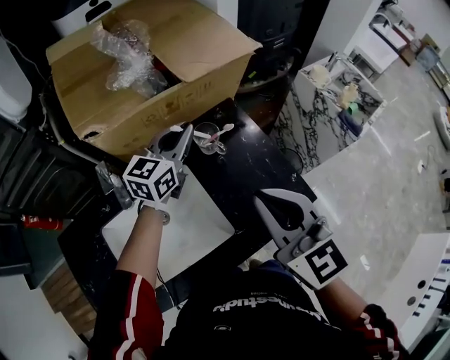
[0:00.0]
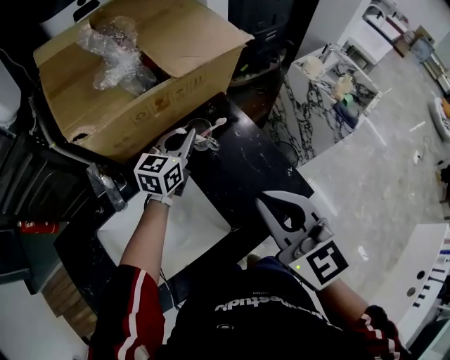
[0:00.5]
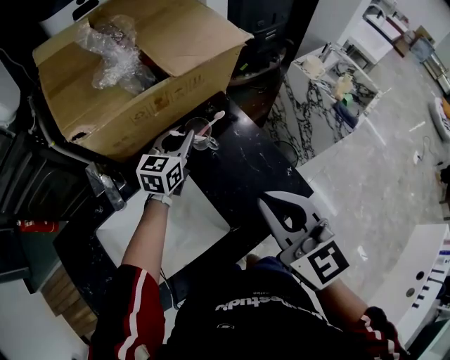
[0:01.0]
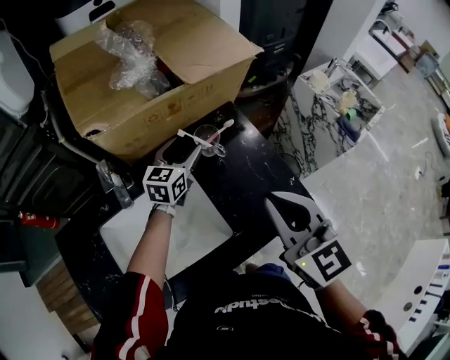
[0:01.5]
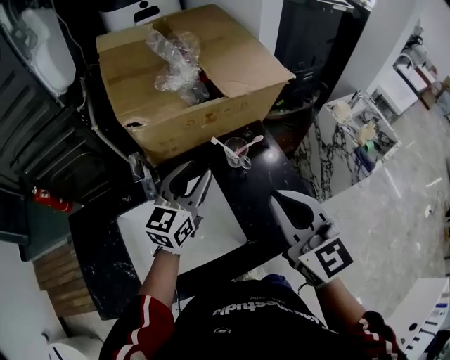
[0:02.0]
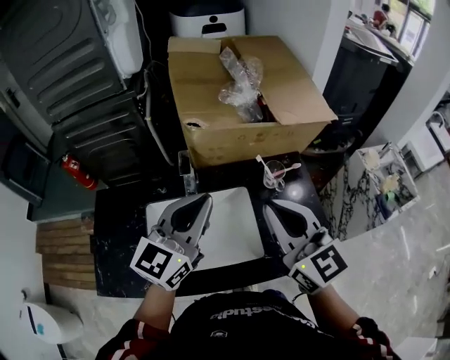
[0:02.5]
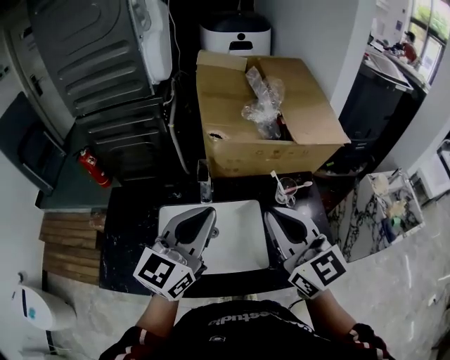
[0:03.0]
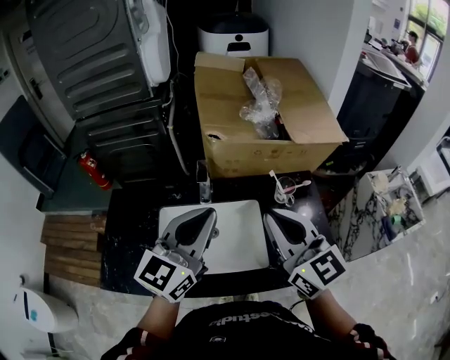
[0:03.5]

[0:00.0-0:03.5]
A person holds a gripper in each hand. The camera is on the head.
0:00.0 to 0:02.0: The left gripper goes approximately 10 cm backward and to the left, and opens.
0:02.0 to 0:03.5: The left gripper goes about 25 cm backward, upward and to the left, and closes up. The right gripper shifts roughly 15 cm to the left and upward, and turns by roughly 20 degrees.

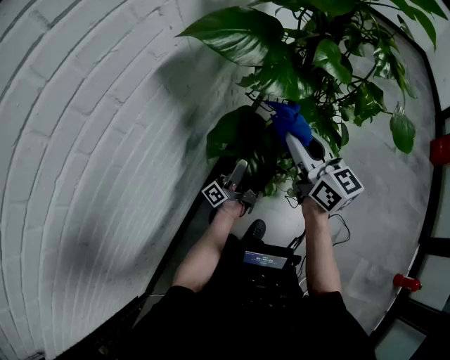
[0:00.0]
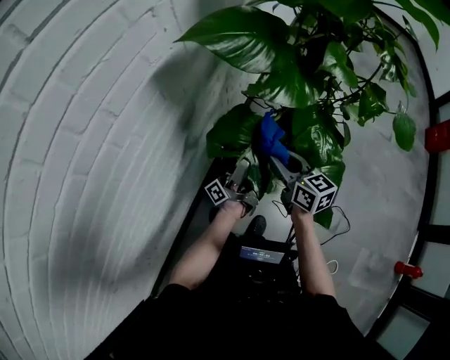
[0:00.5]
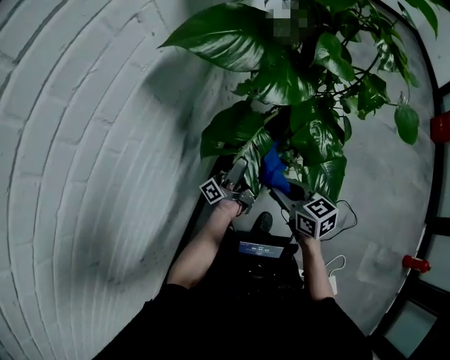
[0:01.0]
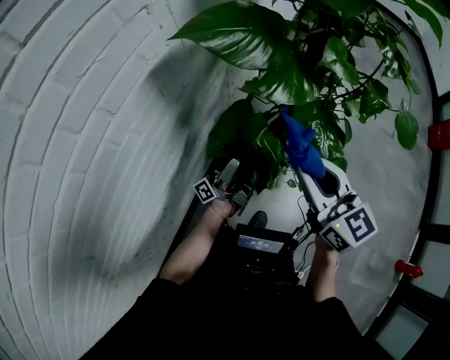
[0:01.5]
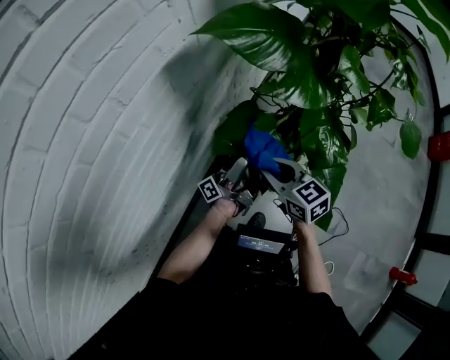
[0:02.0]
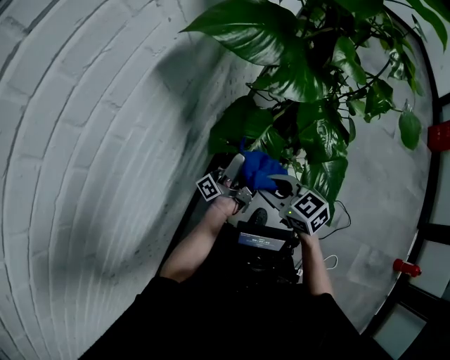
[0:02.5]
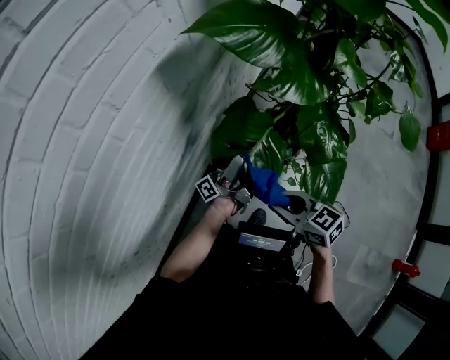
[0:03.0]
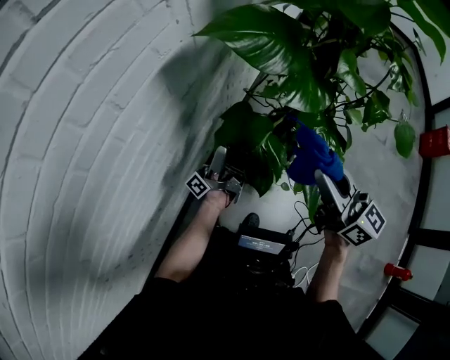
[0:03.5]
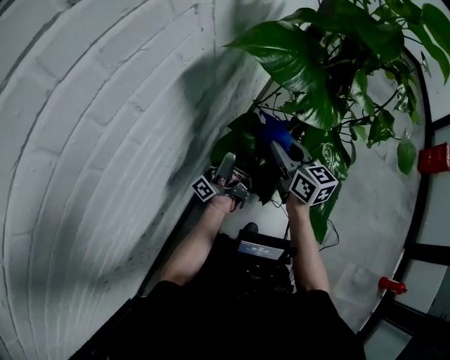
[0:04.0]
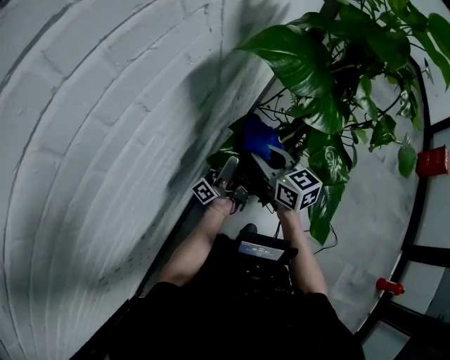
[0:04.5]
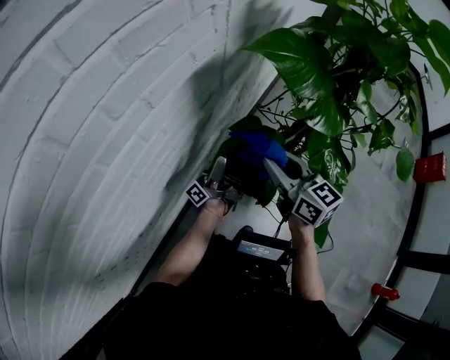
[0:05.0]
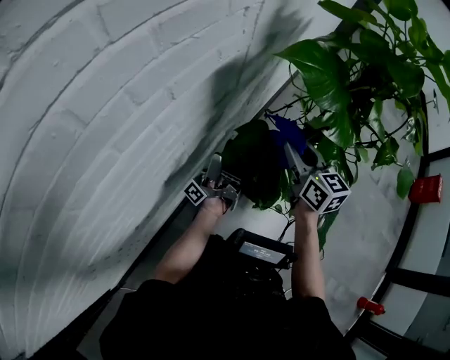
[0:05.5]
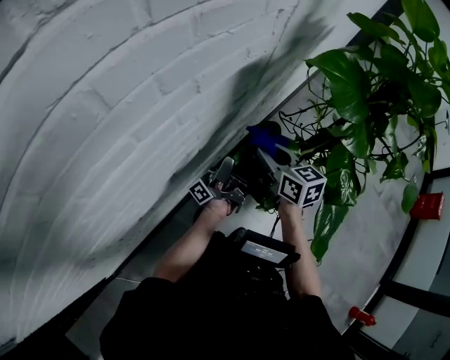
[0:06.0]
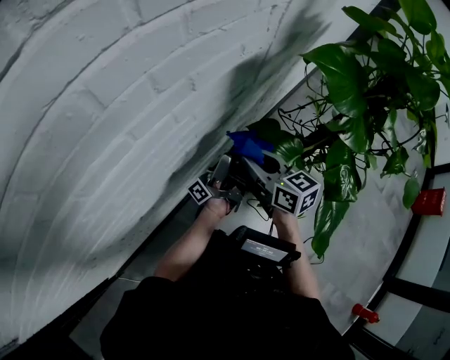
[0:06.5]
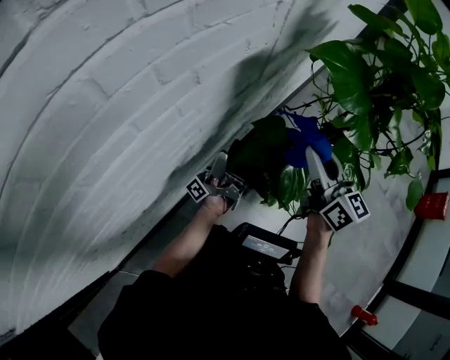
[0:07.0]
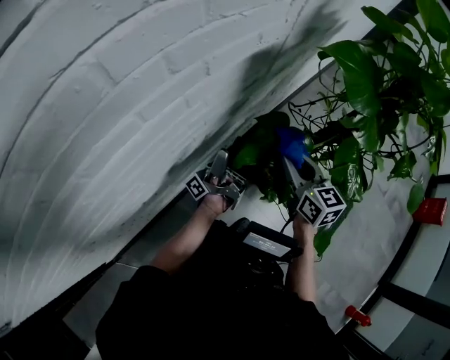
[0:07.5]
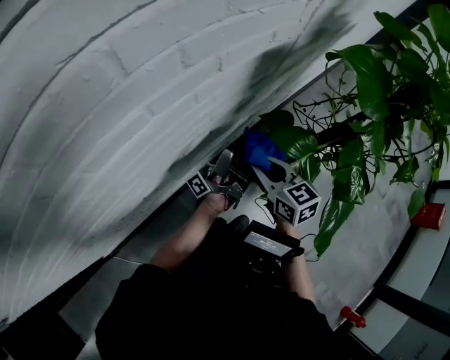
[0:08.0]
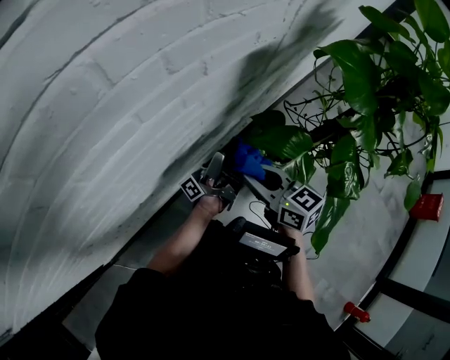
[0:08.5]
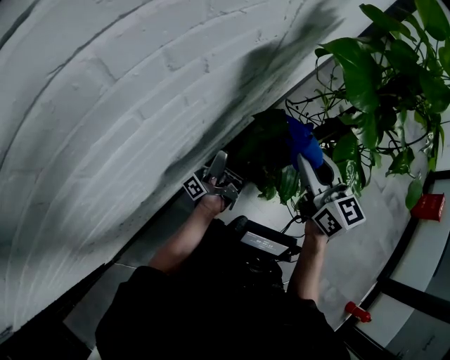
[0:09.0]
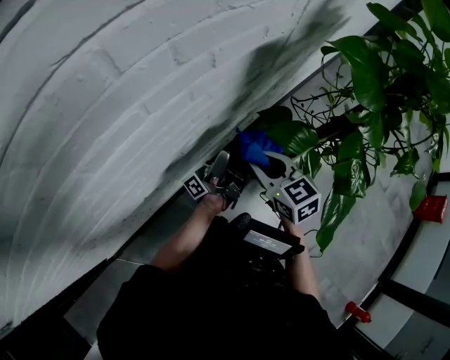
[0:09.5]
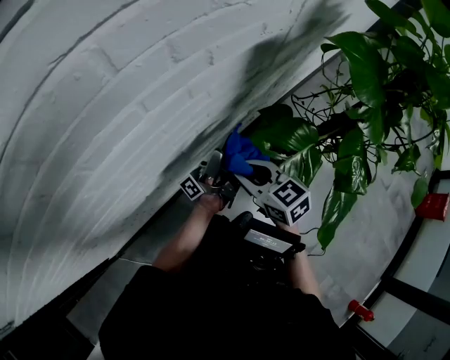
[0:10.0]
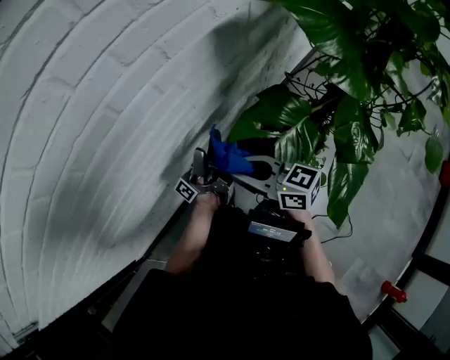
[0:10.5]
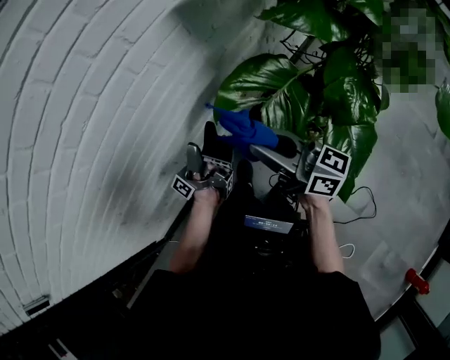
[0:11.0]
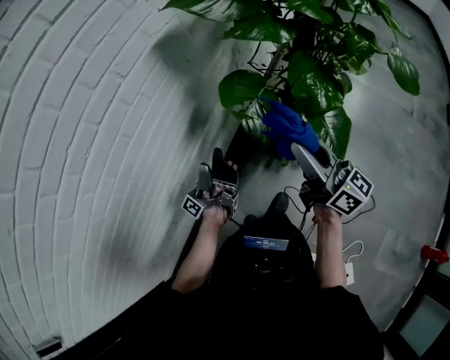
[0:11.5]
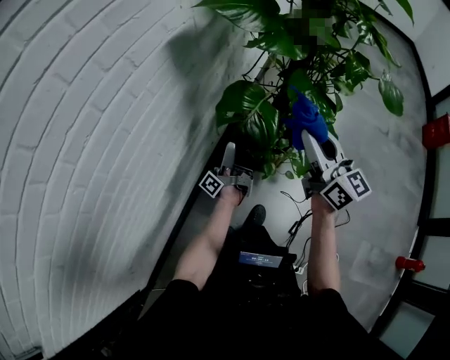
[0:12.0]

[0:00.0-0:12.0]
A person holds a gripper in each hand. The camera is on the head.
0:00.0 to 0:02.0: The right gripper swings up and down, approximately 20 cm each way, with 2 reversals, and rotates about 30 degrees.
0:02.0 to 0:04.0: The right gripper travels upward and back again, roughly 15 cm each way, and turns by about 20 degrees.
0:04.0 to 0:06.0: The right gripper shifts by roughly 15 cm.
0:06.0 to 0:08.0: The right gripper moves about 10 cm upward and comes back.
0:08.0 to 0:10.0: The right gripper reaches roughly 15 cm upward, then returns.
0:10.0 to 0:12.0: The right gripper moves some 35 cm, and points its fingers roughly 30 degrees further upward.

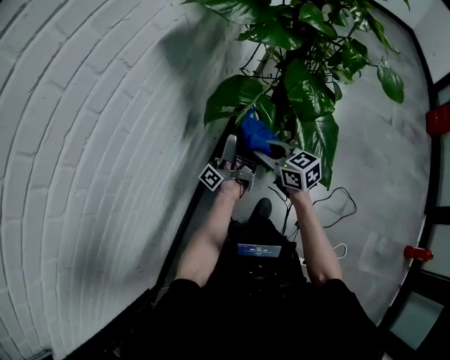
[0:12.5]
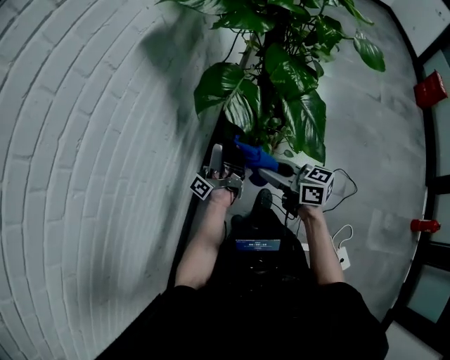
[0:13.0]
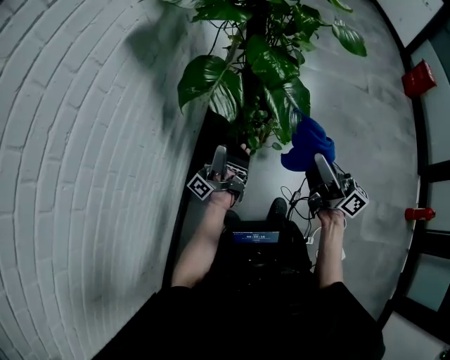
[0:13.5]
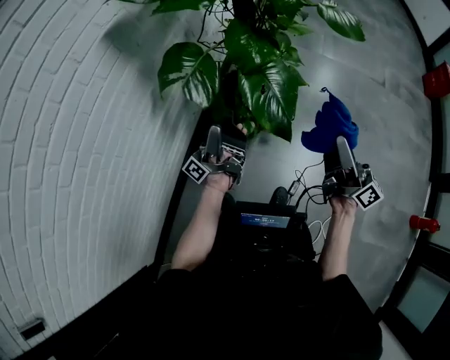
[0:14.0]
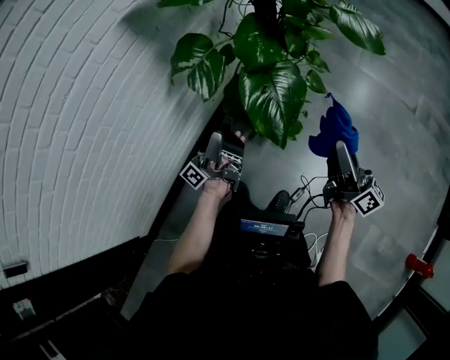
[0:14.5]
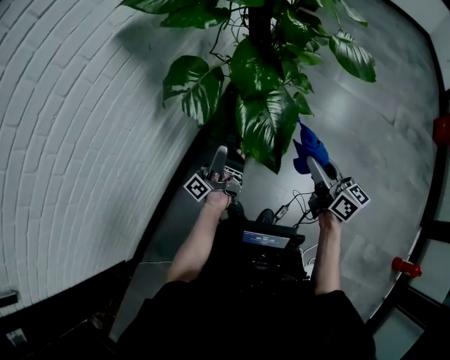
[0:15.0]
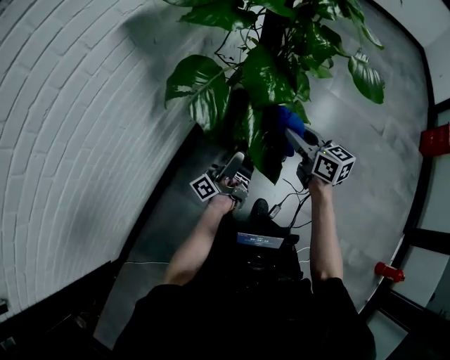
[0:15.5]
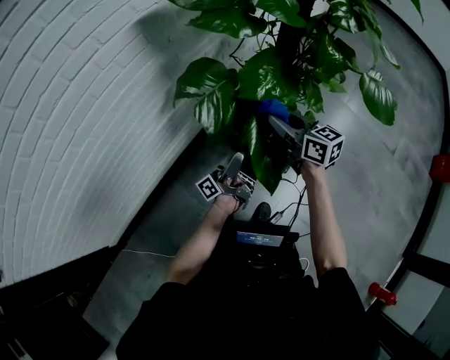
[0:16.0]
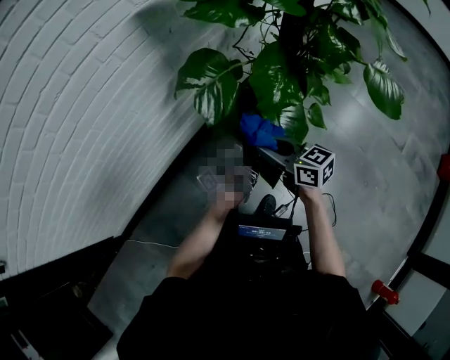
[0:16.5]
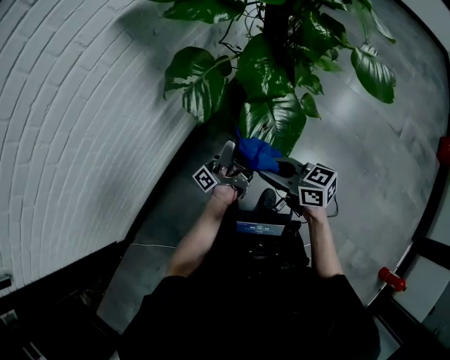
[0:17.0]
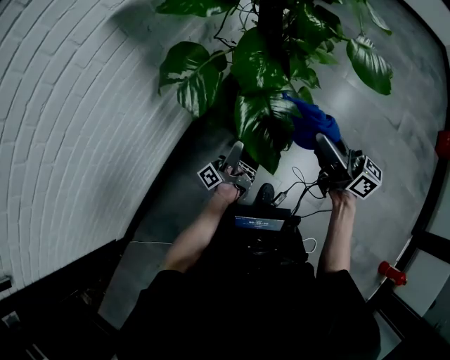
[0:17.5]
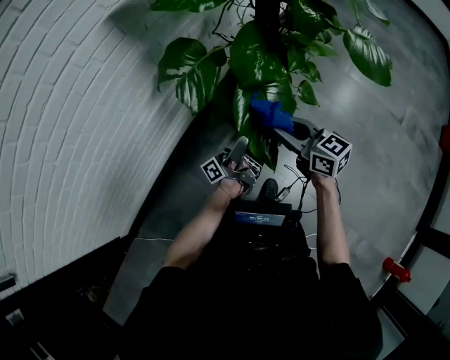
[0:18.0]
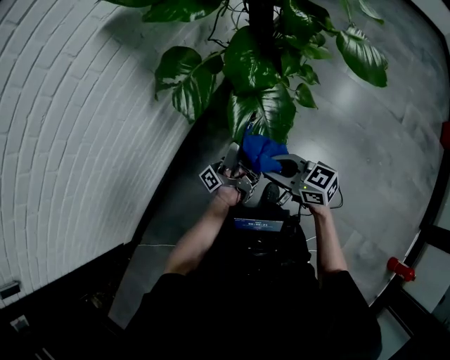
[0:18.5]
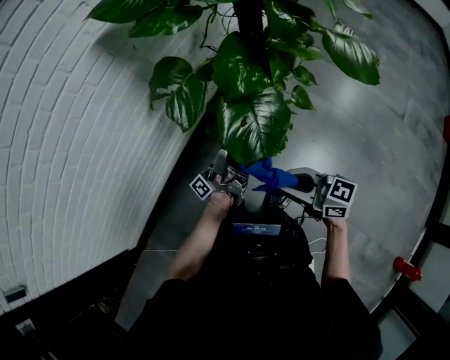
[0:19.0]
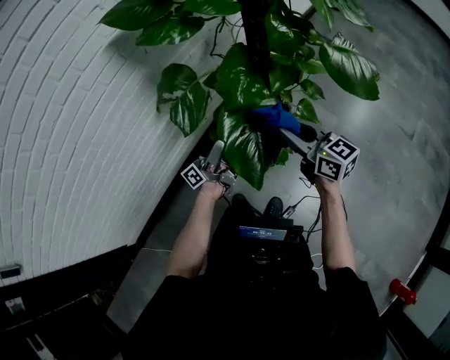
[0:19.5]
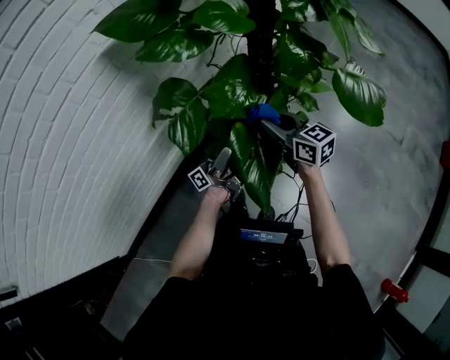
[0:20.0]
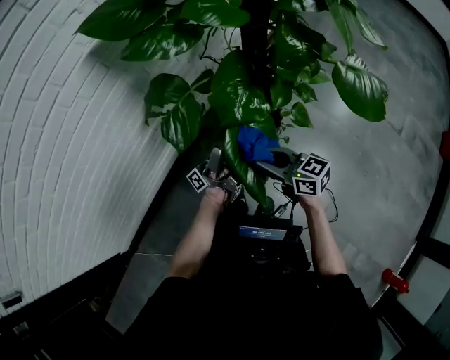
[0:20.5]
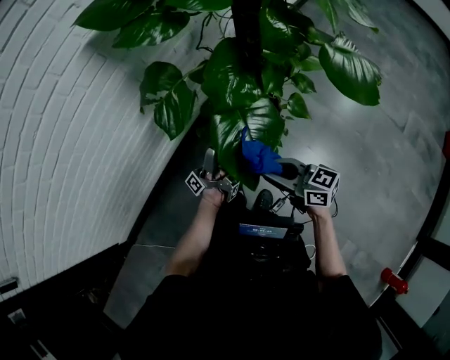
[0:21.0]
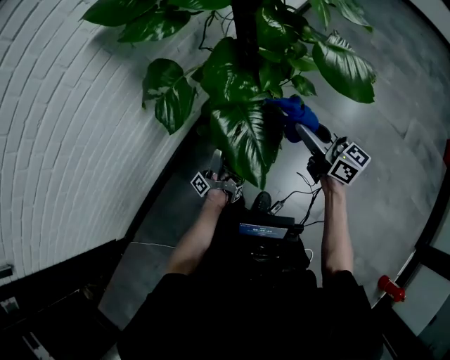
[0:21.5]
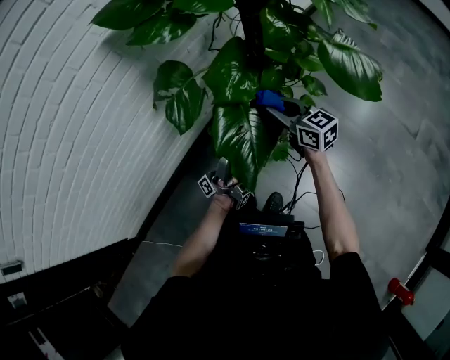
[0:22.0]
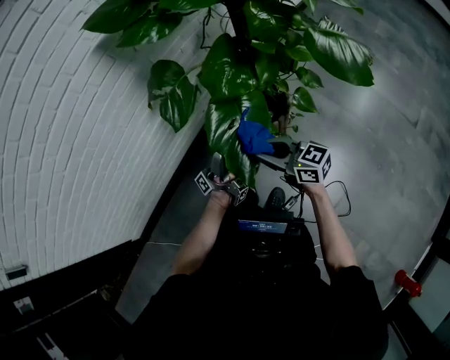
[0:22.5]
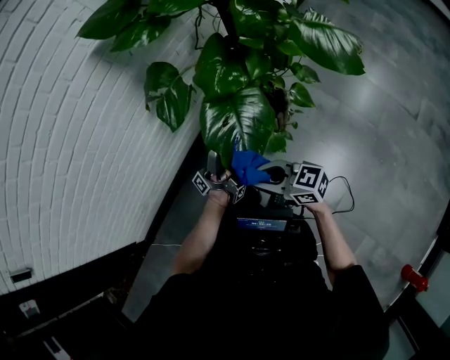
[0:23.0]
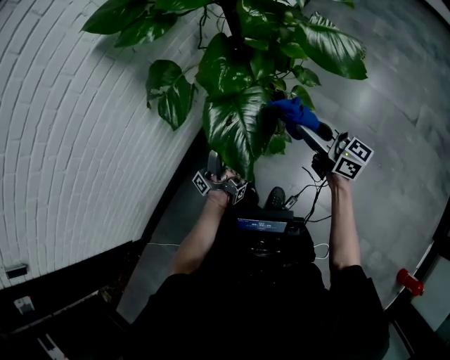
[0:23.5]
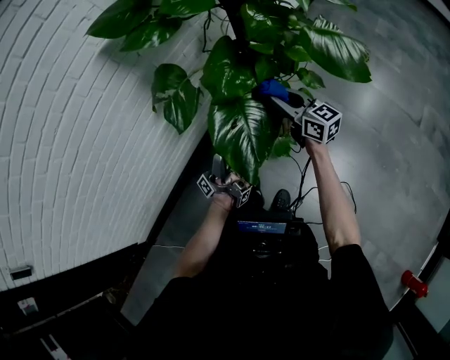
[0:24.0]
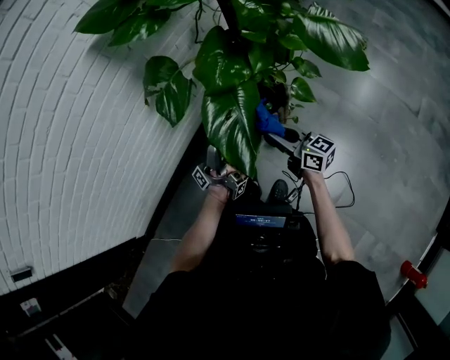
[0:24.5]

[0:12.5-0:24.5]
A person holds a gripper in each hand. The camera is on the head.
0:12.5 to 0:14.5: The right gripper ends up roughly 50 cm from where it was, and tips its fingers upward by roughly 40 degrees.
0:14.5 to 0:16.5: The right gripper ends up about 30 cm from where it was, and tips its fingers downward by about 40 degrees.
0:16.5 to 0:18.5: The right gripper travels upward and back again, approximately 10 cm each way.
0:18.5 to 0:20.5: The right gripper goes upward and returns, approximately 10 cm each way.
0:20.5 to 0:22.5: The right gripper moves about 10 cm upward and comes back.
